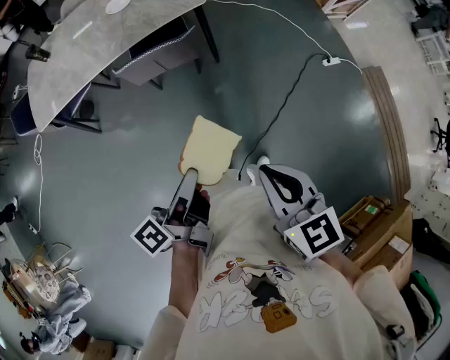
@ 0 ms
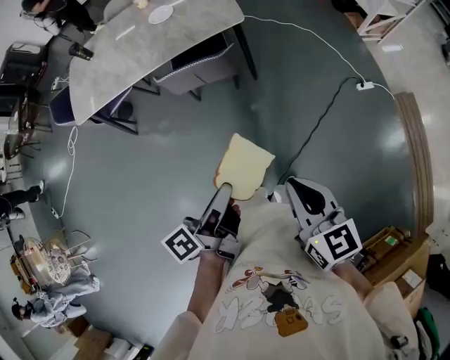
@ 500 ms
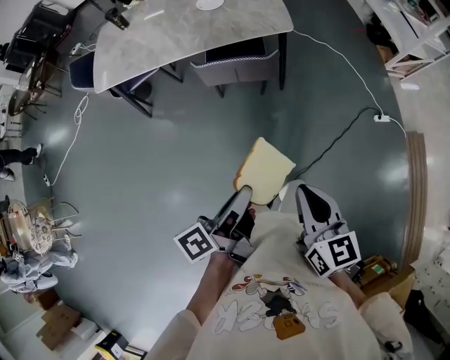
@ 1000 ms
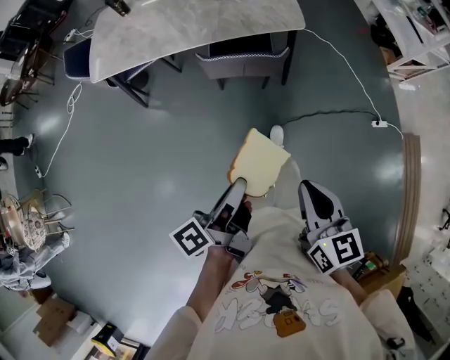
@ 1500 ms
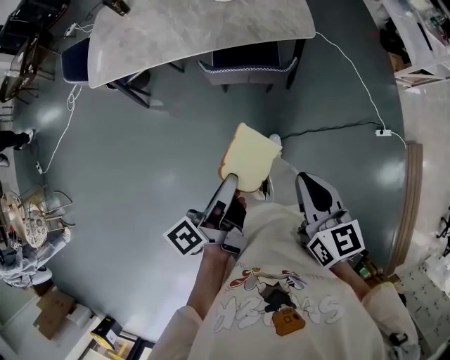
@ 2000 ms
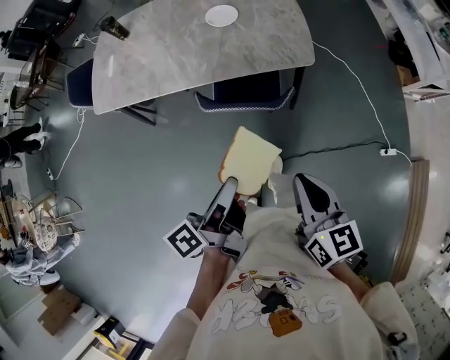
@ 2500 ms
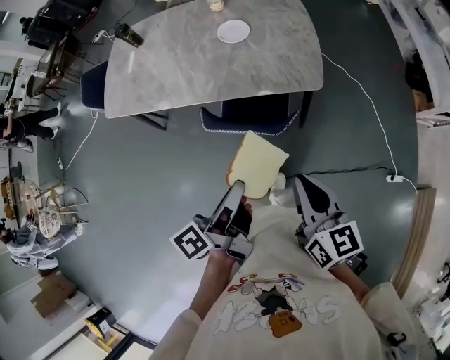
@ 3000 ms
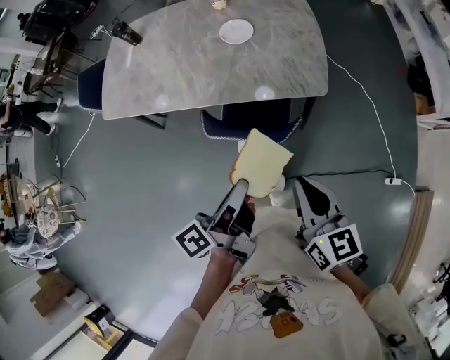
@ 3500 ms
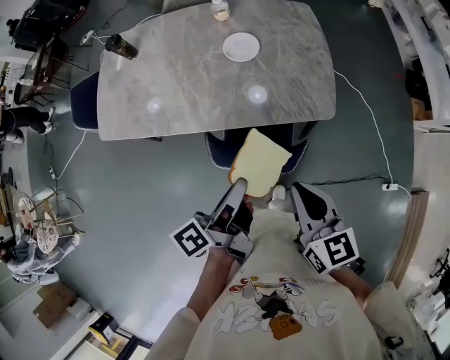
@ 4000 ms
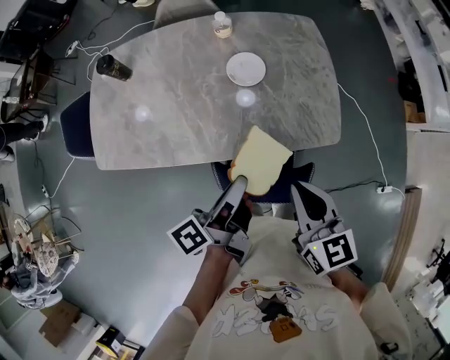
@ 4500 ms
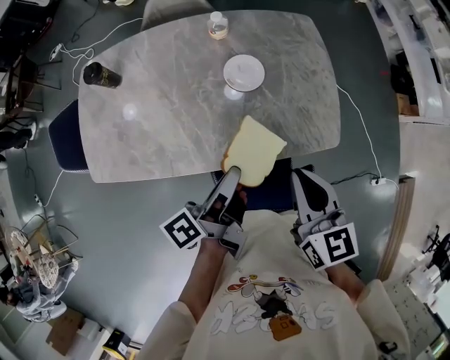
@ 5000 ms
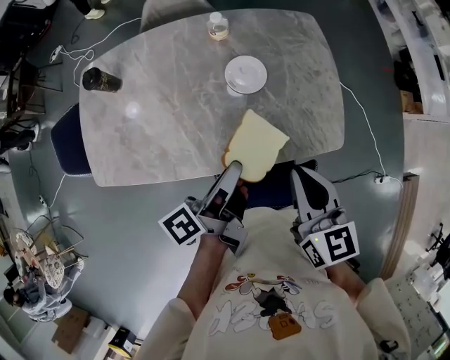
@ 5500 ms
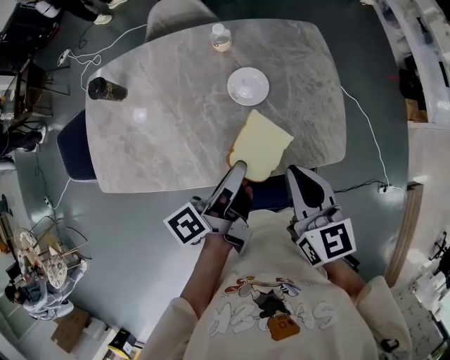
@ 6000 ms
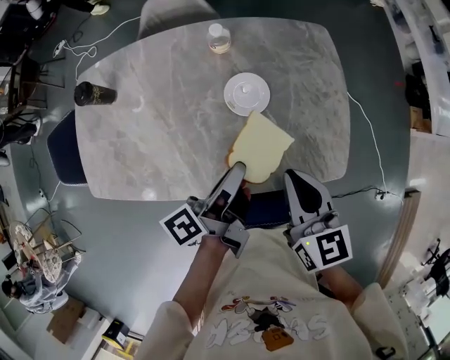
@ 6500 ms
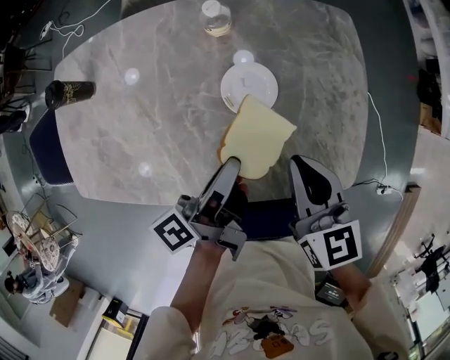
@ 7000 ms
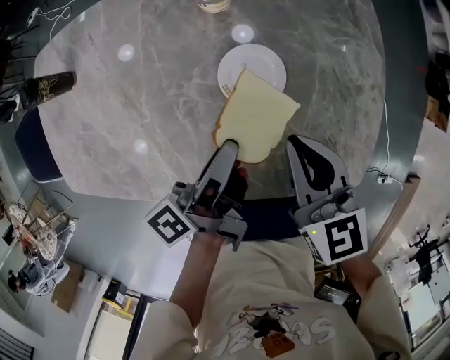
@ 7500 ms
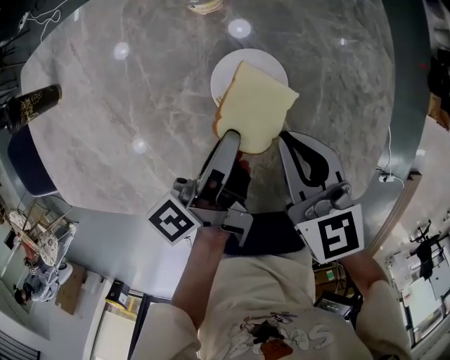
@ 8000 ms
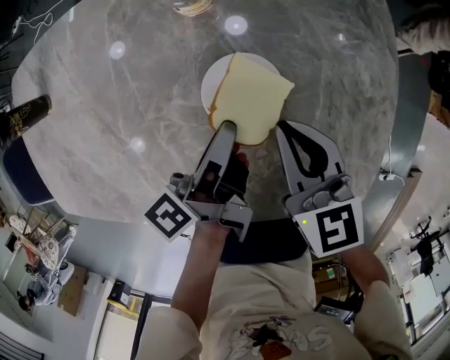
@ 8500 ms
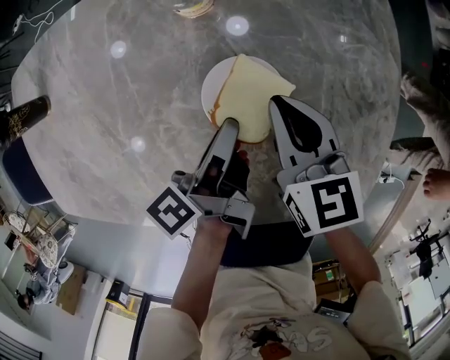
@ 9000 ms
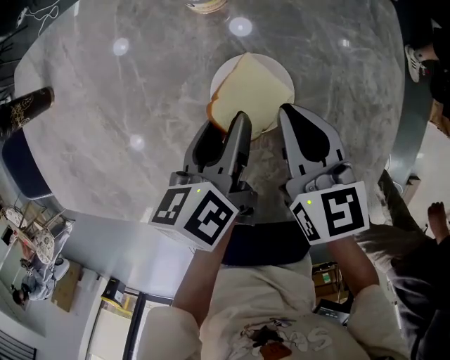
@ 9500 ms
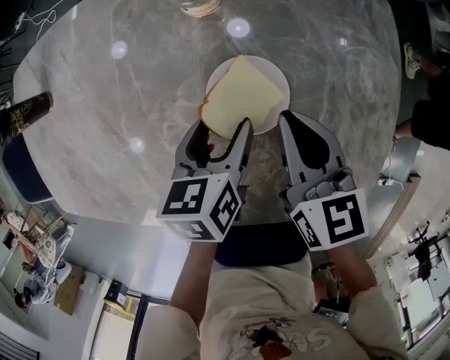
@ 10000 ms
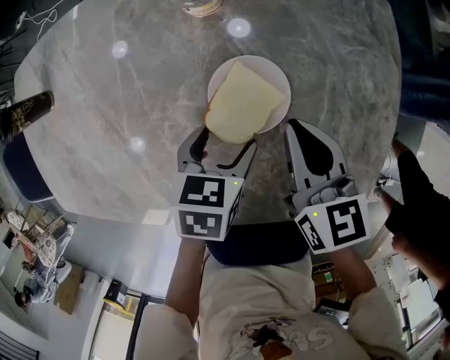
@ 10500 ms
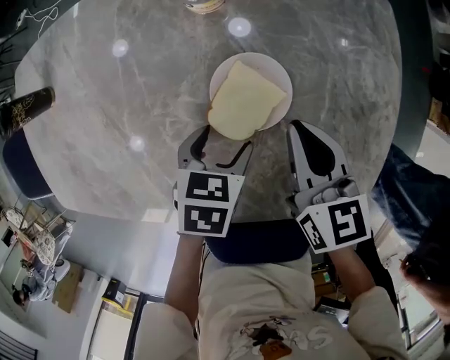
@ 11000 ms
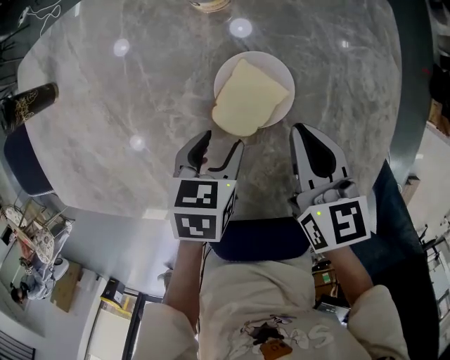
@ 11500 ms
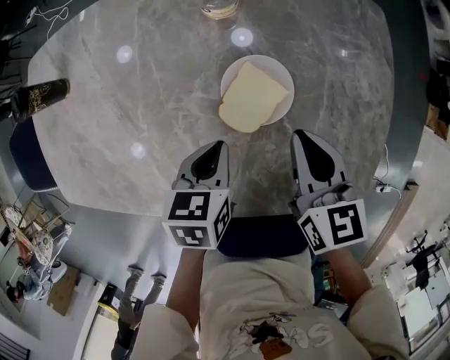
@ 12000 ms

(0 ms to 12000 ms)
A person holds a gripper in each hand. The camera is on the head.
0 ms - 2000 ms: The right gripper moves about 20 cm.
2000 ms - 4000 ms: The right gripper ends up some 35 cm from where it was.
4000 ms - 6000 ms: The right gripper moves some 25 cm.
6000 ms - 8000 ms: The right gripper moves downward, approximately 20 cm.
8000 ms - 10000 ms: The right gripper shifts by roughly 5 cm.
10000 ms - 12000 ms: The right gripper changes place by roughly 5 cm.

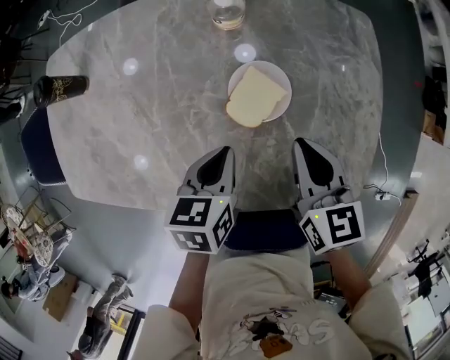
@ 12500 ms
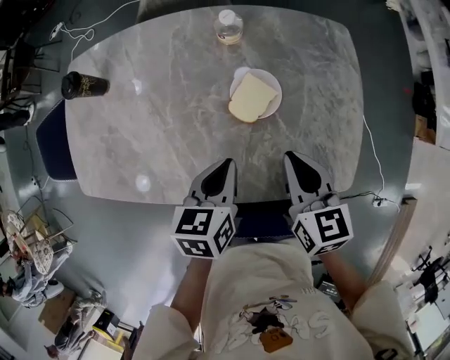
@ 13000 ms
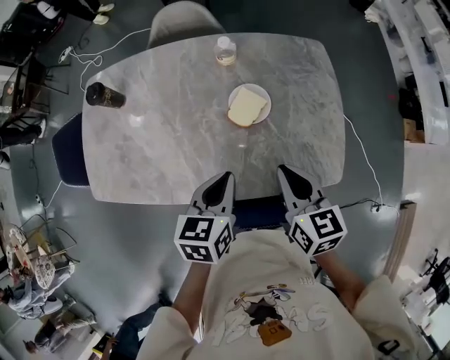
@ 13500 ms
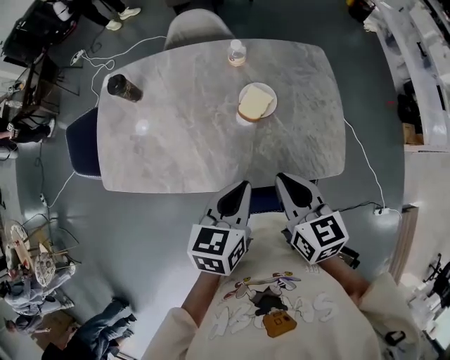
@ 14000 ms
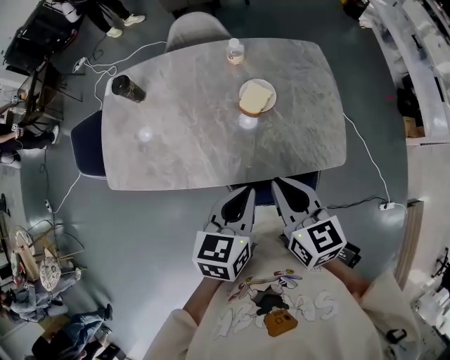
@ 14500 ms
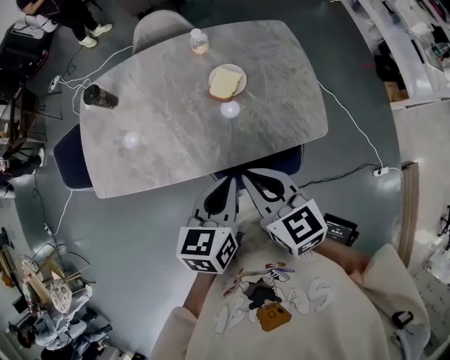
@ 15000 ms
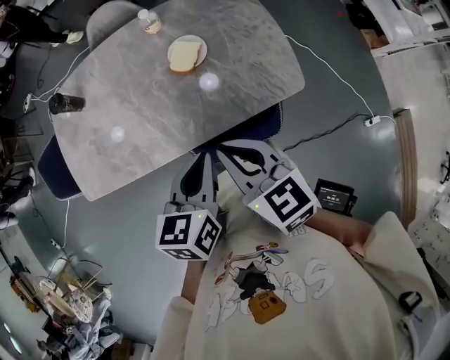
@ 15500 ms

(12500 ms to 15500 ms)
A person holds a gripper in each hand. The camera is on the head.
12500 ms - 14000 ms: The right gripper ends up approximately 30 cm from where it was.
14000 ms - 15500 ms: The right gripper changes place by some 10 cm.

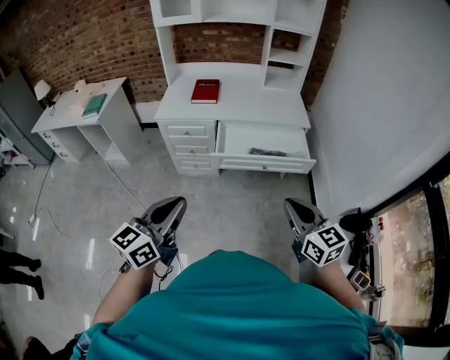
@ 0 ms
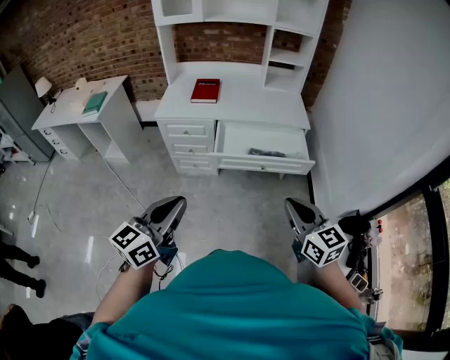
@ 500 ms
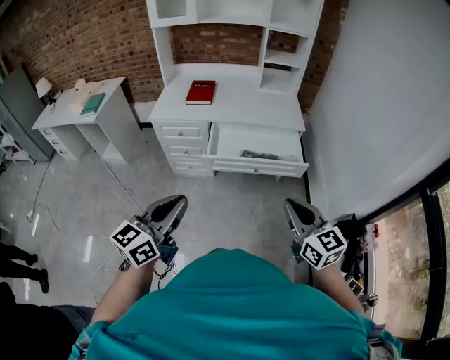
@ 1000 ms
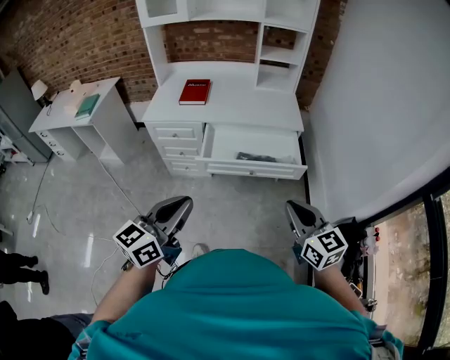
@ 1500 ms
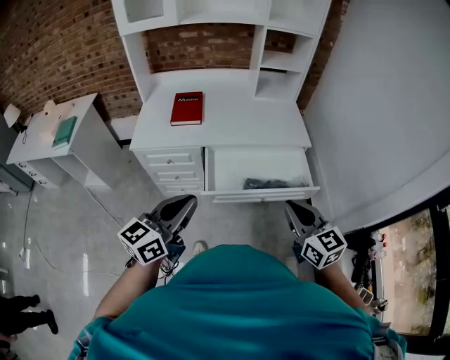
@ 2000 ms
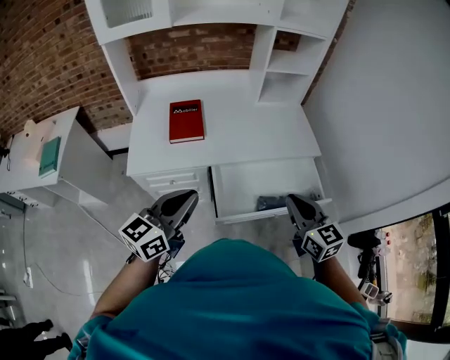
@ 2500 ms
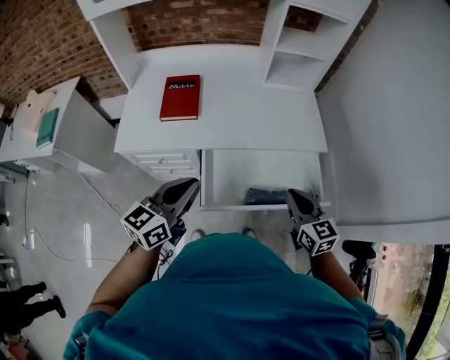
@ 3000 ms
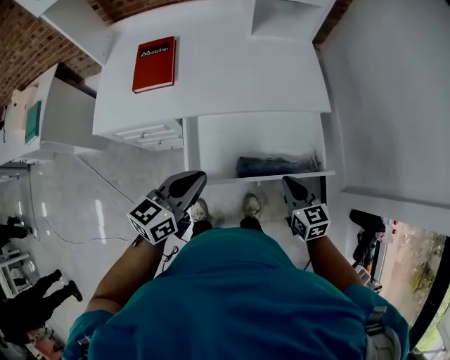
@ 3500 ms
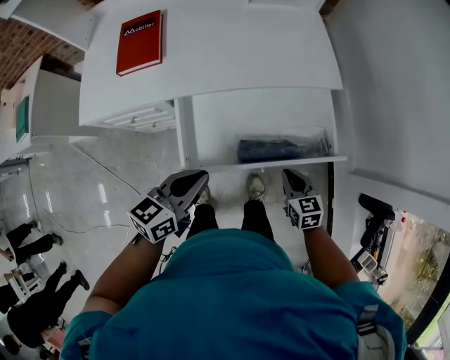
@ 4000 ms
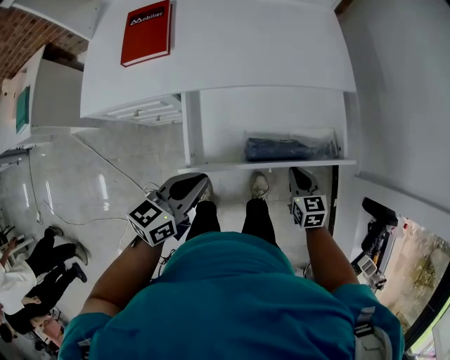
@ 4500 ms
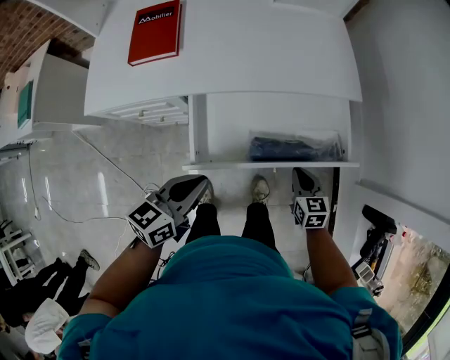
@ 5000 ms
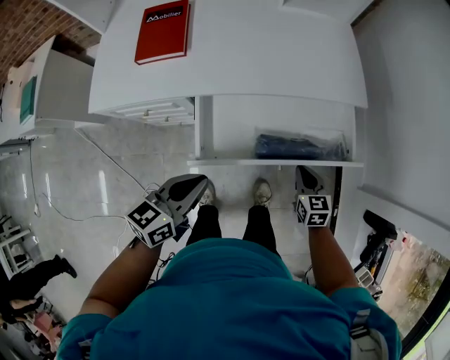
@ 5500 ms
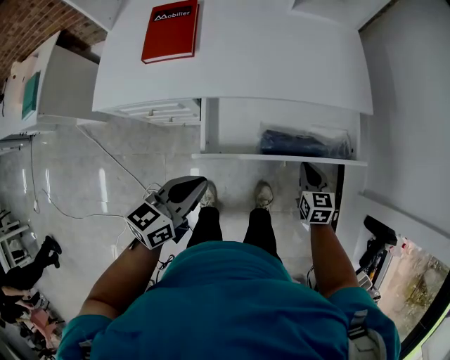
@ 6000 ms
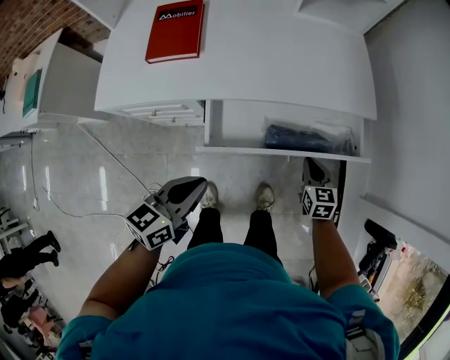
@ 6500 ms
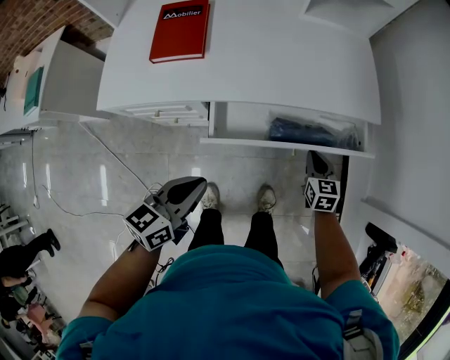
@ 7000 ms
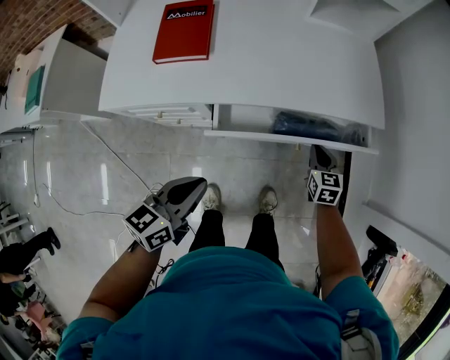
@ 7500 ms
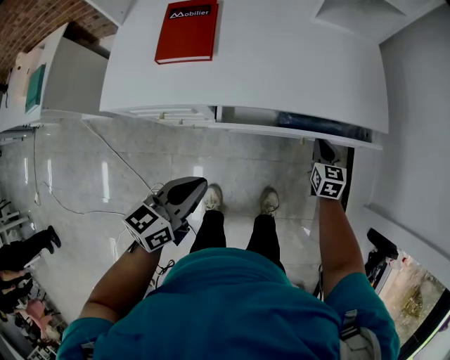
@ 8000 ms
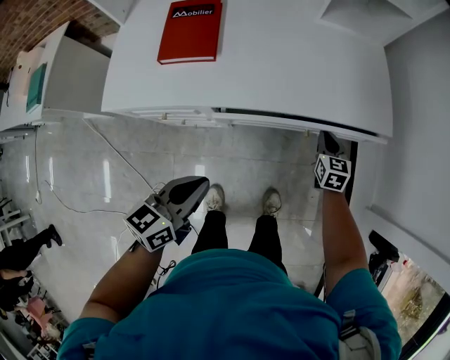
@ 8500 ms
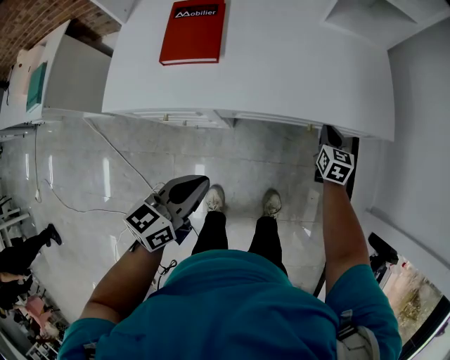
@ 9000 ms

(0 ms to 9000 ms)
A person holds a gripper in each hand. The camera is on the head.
0 ms - 2000 ms: The grippers both shift forward by some 25 cm.
2000 ms - 4500 ms: Both grippers travel together downward and forward, about 35 cm. The left gripper turns by approximately 30 degrees. Meanwhile the right gripper swivels approximately 30 degrees.
4500 ms - 7000 ms: The left gripper is displaced to the left by about 10 cm. Meanwhile the right gripper heads forward and to the left, covering roughly 15 cm.
7000 ms - 9000 ms: The right gripper shifts approximately 10 cm forward.

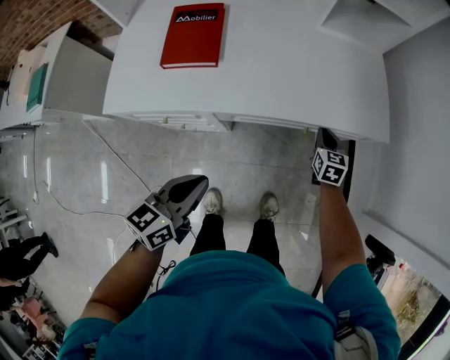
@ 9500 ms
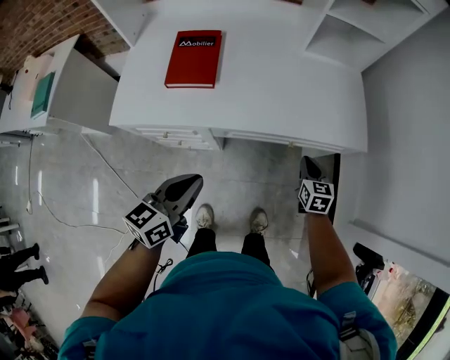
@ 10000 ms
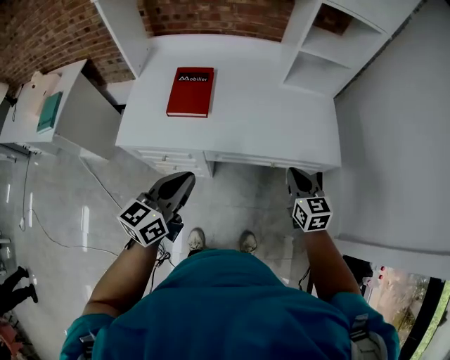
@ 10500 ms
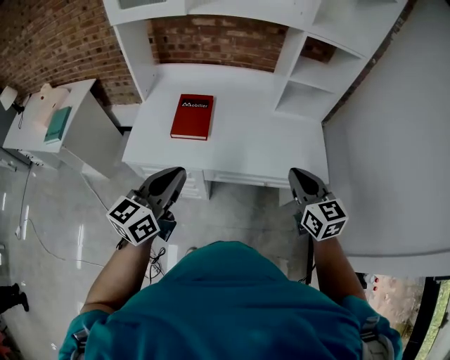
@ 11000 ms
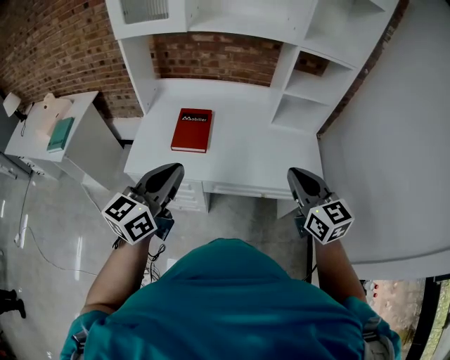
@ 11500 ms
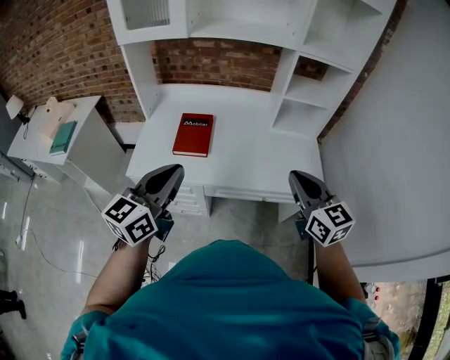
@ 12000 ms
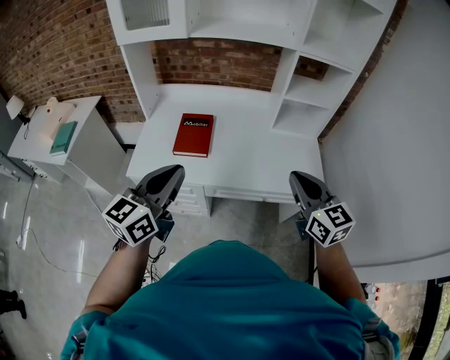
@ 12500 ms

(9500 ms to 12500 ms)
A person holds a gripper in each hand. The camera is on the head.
9500 ms - 11000 ms: The left gripper travels upward by roughly 25 cm, and swivels approximately 30 degrees. Meanwhile the right gripper travels upward by approximately 40 cm, and rotates about 30 degrees.
11000 ms - 12500 ms: Both grippers move upward, some 5 cm.
